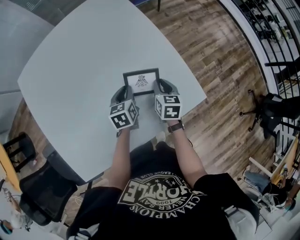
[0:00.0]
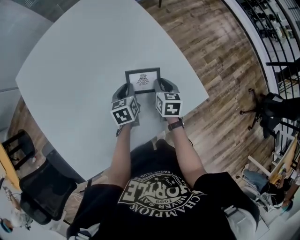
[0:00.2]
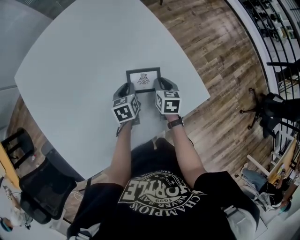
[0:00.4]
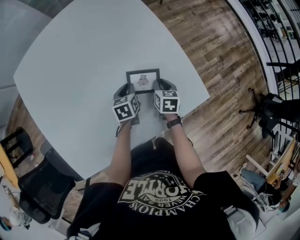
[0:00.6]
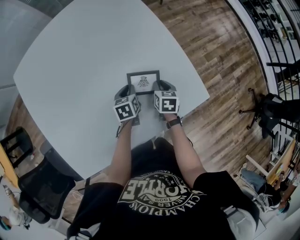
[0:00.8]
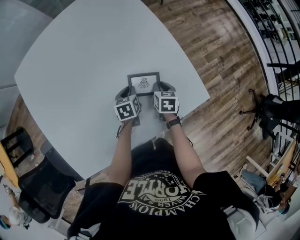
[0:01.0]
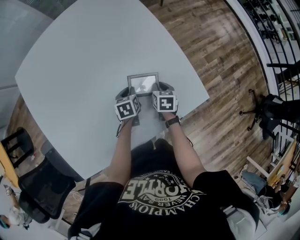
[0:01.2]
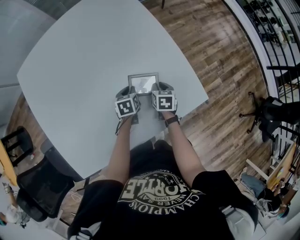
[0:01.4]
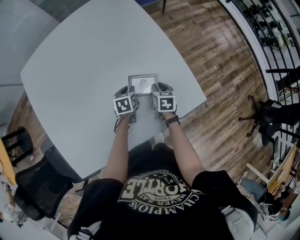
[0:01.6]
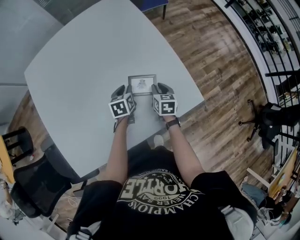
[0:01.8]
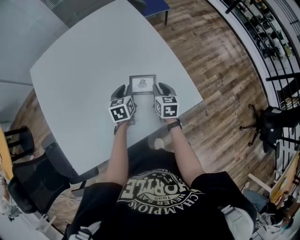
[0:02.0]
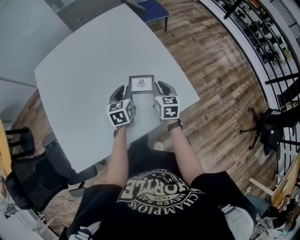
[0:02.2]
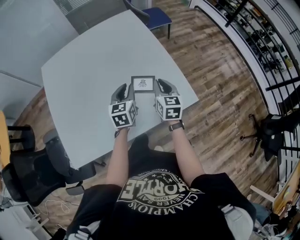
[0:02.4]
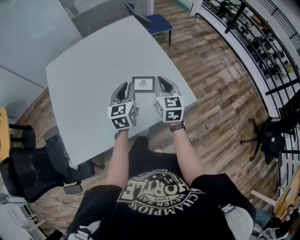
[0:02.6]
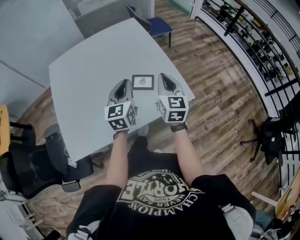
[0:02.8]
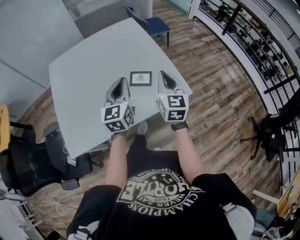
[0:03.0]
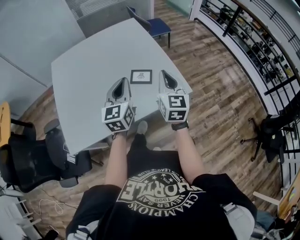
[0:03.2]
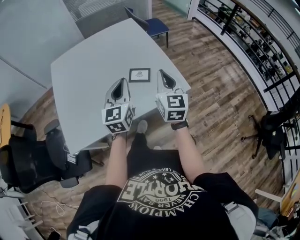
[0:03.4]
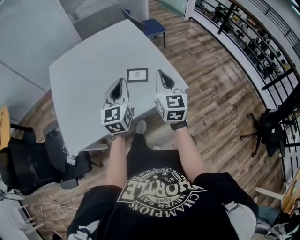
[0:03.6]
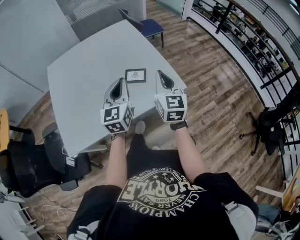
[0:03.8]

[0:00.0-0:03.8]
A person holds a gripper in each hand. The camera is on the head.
0:00.0 to 0:01.2: Both grippers move downward, roughly 10 cm.
0:01.2 to 0:02.6: Both grippers move upward and backward, about 35 cm. The left gripper points its fingers approximately 40 degrees further upward; the right gripper angles its fingers upward, by about 40 degrees.
0:02.6 to 0:03.8: Both grippers travel together backward and upward, roughly 20 cm.

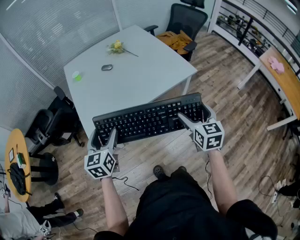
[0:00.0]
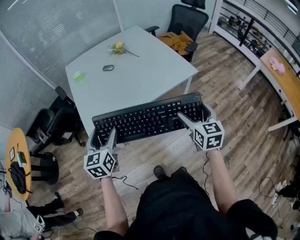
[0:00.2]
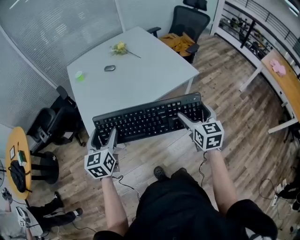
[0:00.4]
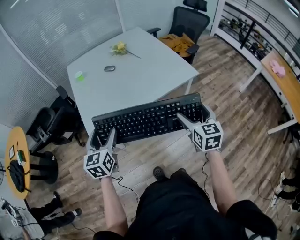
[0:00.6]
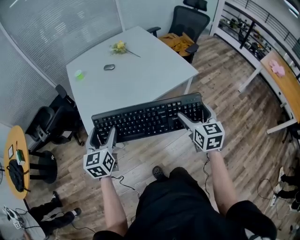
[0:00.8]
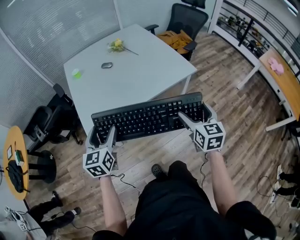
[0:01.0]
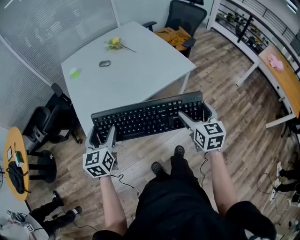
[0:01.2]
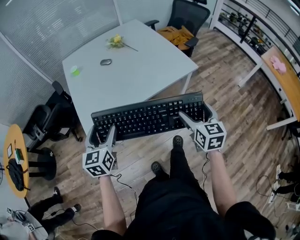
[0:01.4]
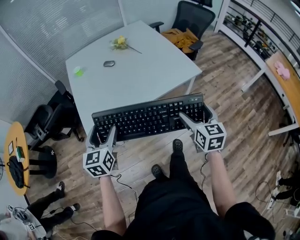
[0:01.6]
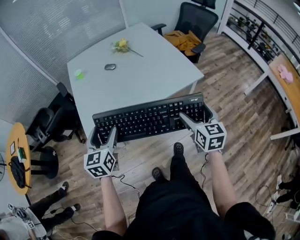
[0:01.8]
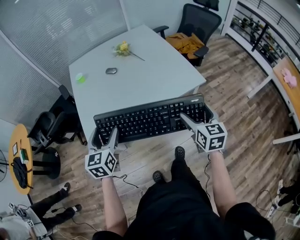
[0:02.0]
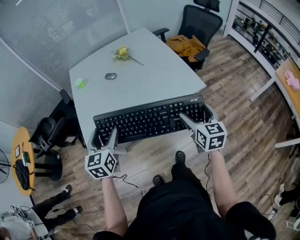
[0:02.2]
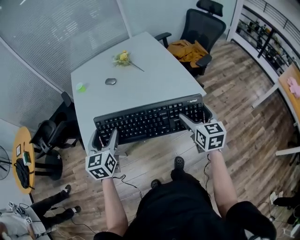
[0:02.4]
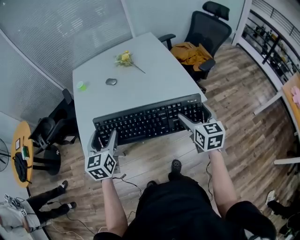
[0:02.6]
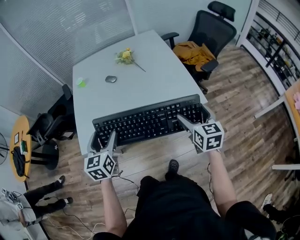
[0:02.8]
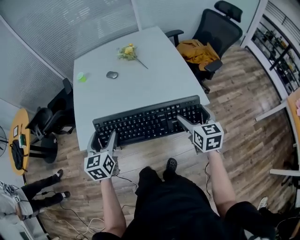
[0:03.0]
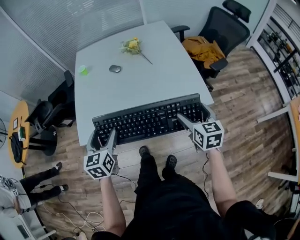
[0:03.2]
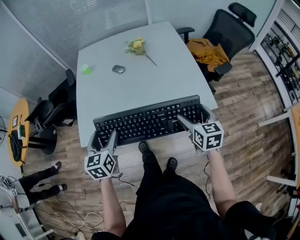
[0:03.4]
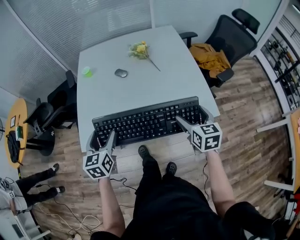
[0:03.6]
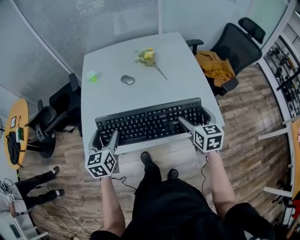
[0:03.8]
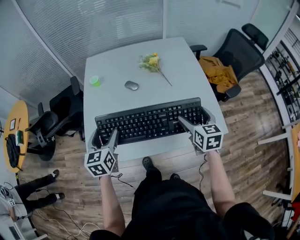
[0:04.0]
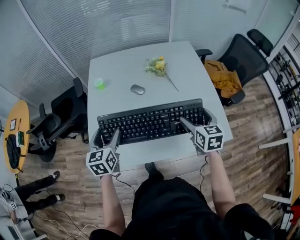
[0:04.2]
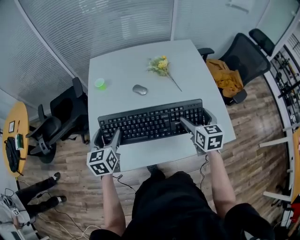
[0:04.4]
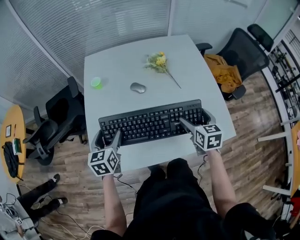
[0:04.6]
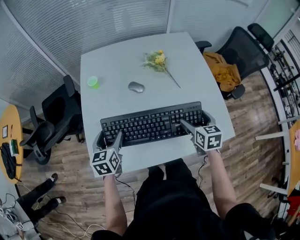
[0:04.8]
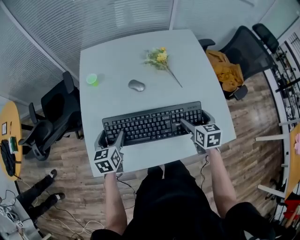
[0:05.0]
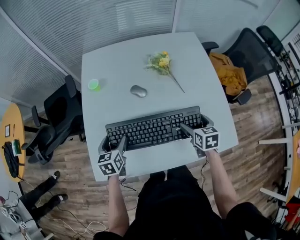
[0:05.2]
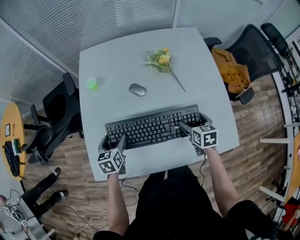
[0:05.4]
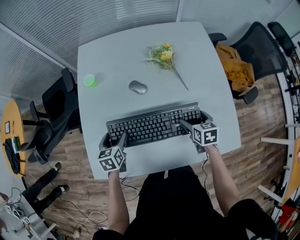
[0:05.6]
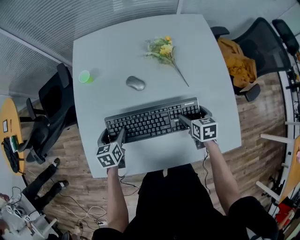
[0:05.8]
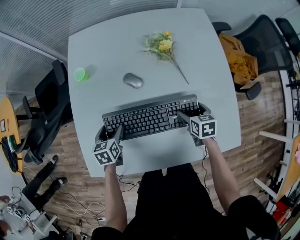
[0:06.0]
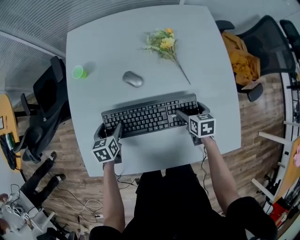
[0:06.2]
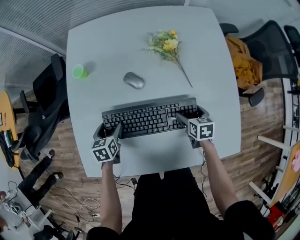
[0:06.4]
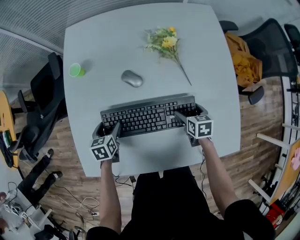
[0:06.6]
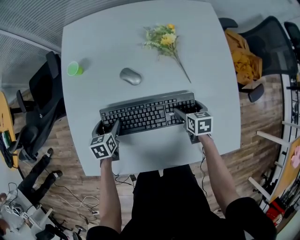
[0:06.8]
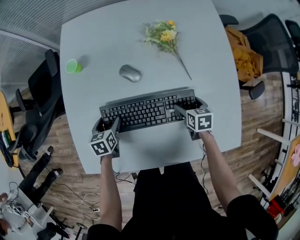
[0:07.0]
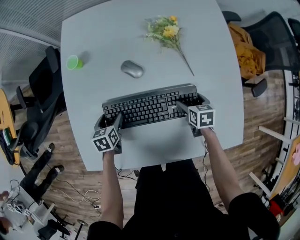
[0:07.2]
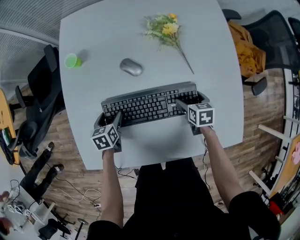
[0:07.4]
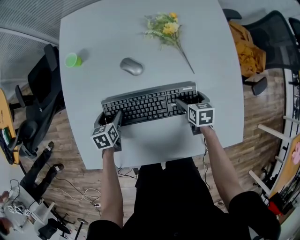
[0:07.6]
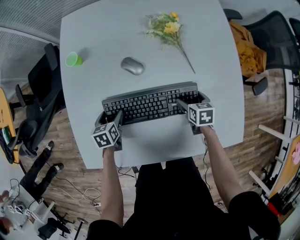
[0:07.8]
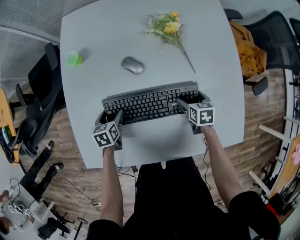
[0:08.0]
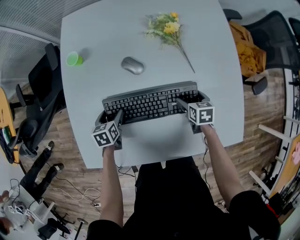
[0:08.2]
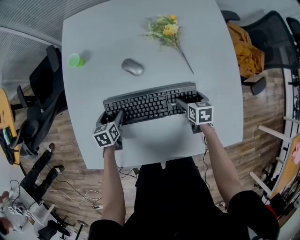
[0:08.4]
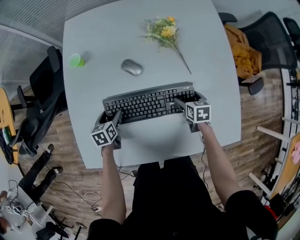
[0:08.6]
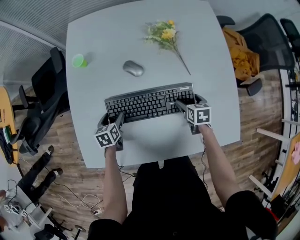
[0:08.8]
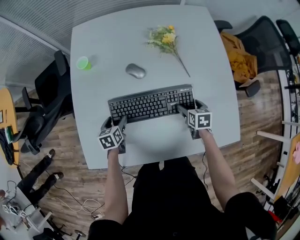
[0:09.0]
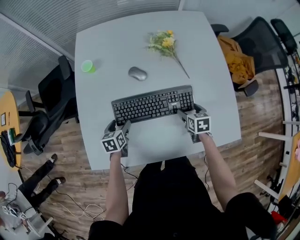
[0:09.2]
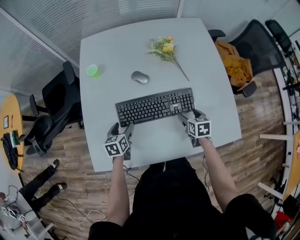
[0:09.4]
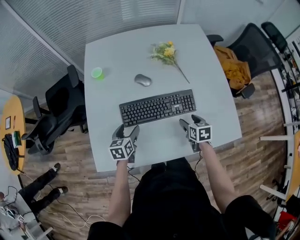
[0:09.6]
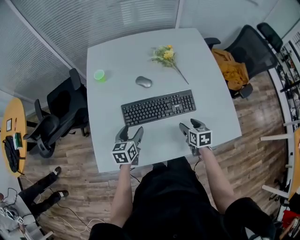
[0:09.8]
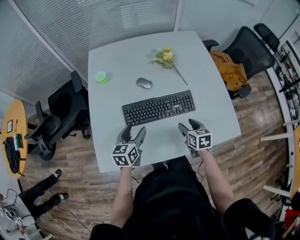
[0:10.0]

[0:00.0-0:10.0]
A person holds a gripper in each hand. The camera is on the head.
0:00.0 to 0:01.4: The grippers move only a little.
0:01.4 to 0:02.8: The two grippers go roughly 20 cm forward and to the right.
0:02.8 to 0:04.2: Both grippers travel together forward and to the left, approximately 25 cm.
0:04.2 to 0:05.8: Both grippers move downward and forward, some 25 cm. The left gripper turns by about 30 degrees; the right gripper rotates roughly 30 degrees.
0:05.8 to 0:07.2: The two grippers go approximately 10 cm downward.
0:07.2 to 0:08.6: The grippers make only small movements.
0:08.6 to 0:10.0: The right gripper shifts some 20 cm backward, upward and to the left, and closes its fingers. Meanwhile the left gripper heads upward and backward, covering some 20 cm, and changes its angle by about 30 degrees.

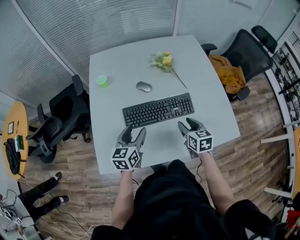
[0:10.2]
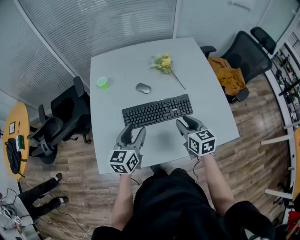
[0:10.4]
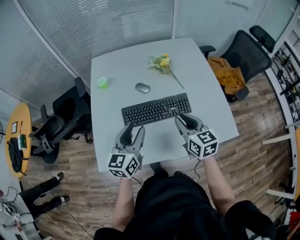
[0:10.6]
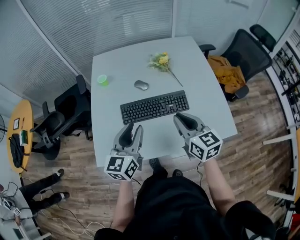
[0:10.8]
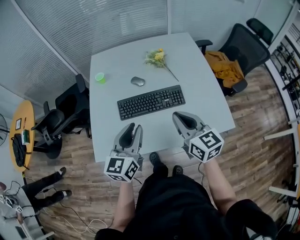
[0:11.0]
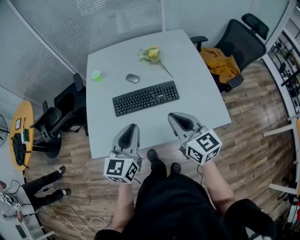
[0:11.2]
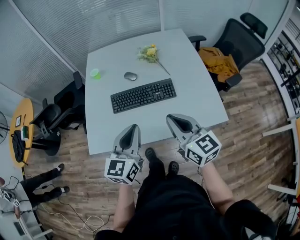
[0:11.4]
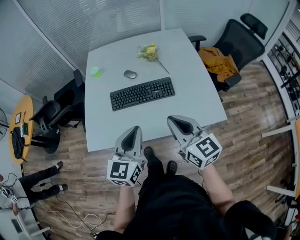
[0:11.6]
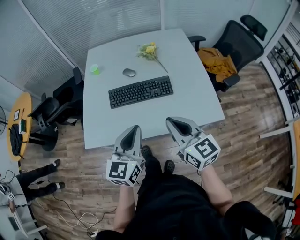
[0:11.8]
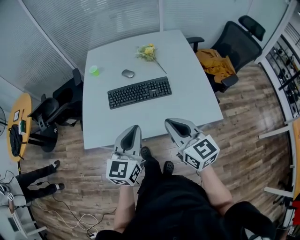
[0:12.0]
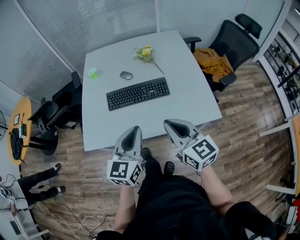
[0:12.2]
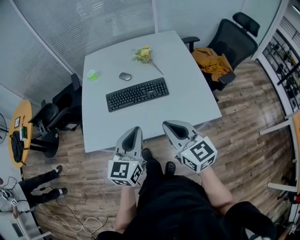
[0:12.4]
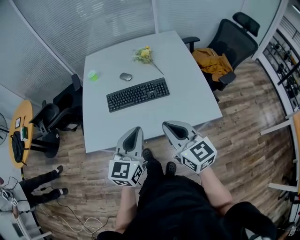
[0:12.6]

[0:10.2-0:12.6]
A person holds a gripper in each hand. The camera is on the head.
0:10.2 to 0:11.4: The right gripper is displaced upward and backward by about 25 cm, turns by approximately 30 degrees, and closes. The left gripper travels backward, upward and to the right by some 25 cm, and closes its fingers.
0:11.4 to 0:12.6: The grippers both shift backward by roughly 5 cm.

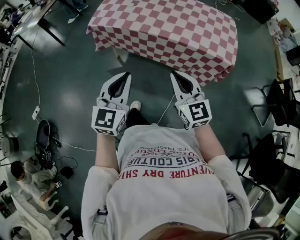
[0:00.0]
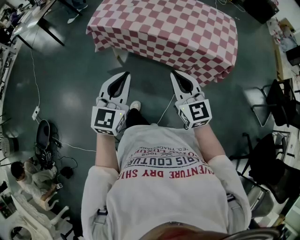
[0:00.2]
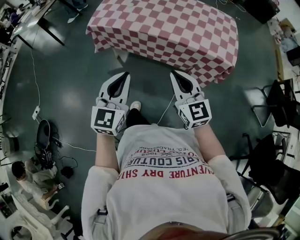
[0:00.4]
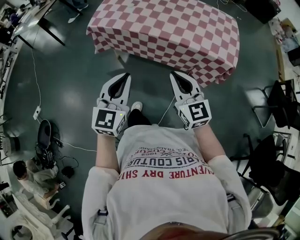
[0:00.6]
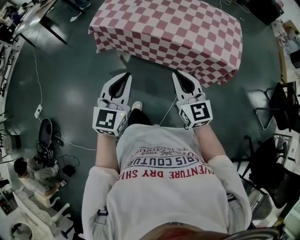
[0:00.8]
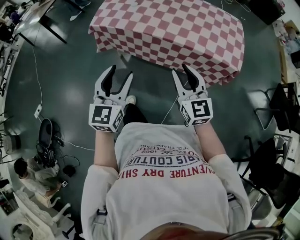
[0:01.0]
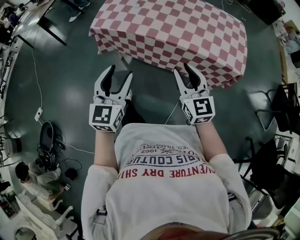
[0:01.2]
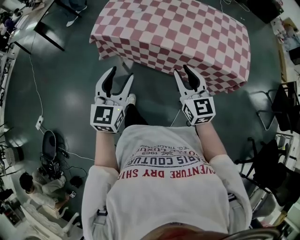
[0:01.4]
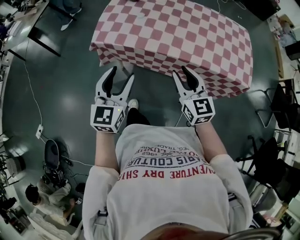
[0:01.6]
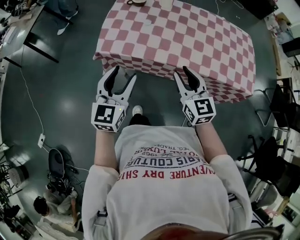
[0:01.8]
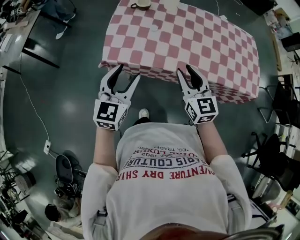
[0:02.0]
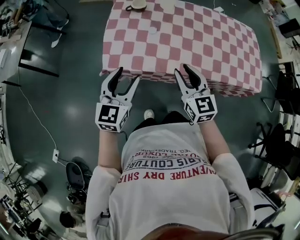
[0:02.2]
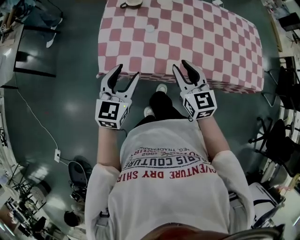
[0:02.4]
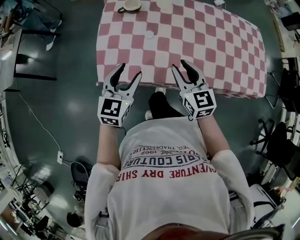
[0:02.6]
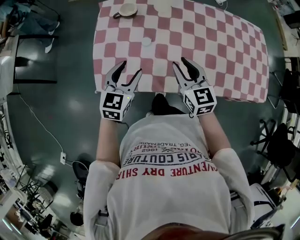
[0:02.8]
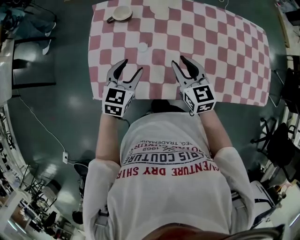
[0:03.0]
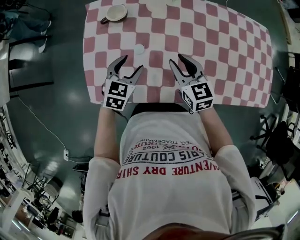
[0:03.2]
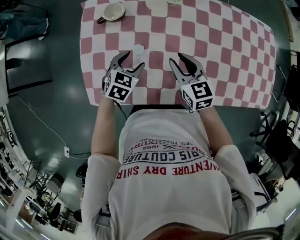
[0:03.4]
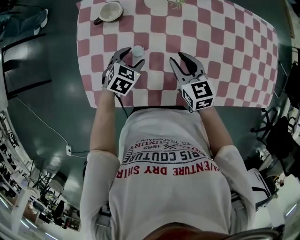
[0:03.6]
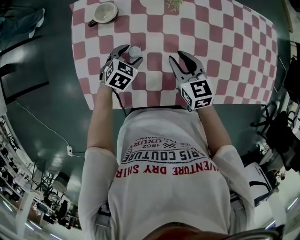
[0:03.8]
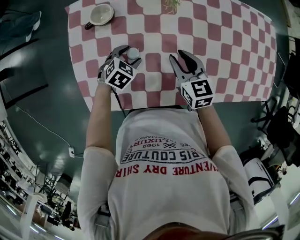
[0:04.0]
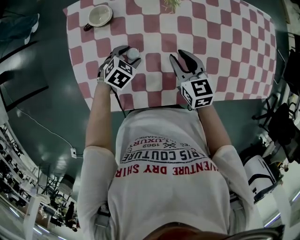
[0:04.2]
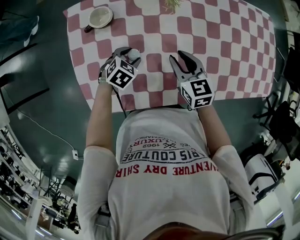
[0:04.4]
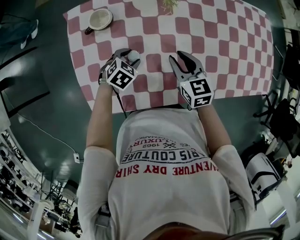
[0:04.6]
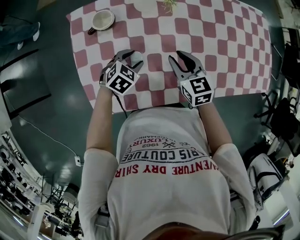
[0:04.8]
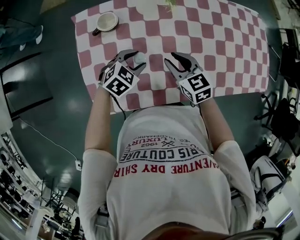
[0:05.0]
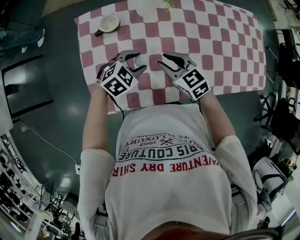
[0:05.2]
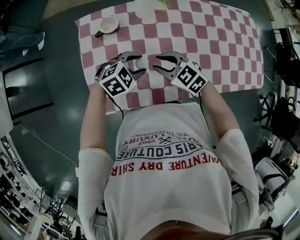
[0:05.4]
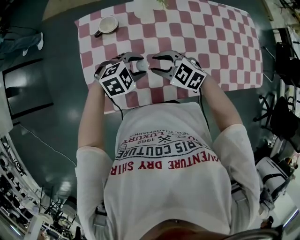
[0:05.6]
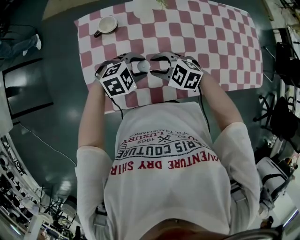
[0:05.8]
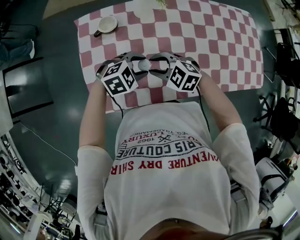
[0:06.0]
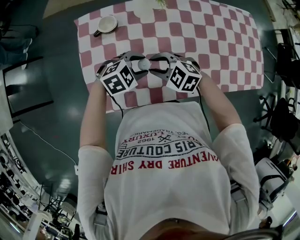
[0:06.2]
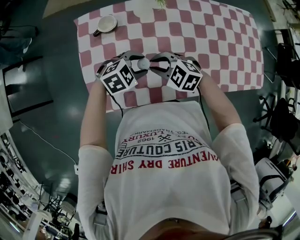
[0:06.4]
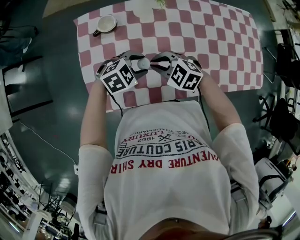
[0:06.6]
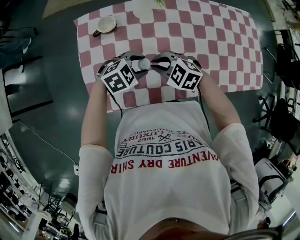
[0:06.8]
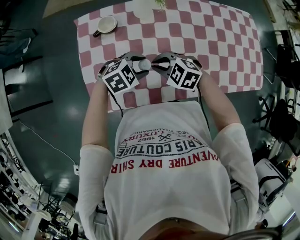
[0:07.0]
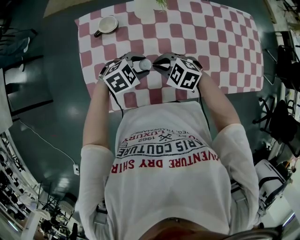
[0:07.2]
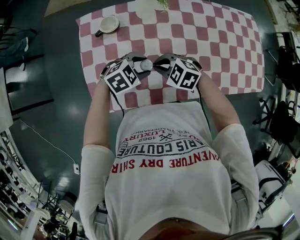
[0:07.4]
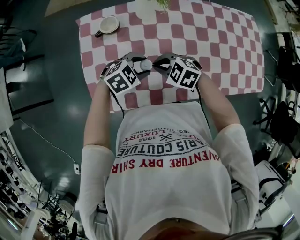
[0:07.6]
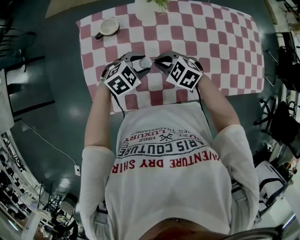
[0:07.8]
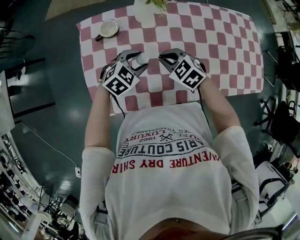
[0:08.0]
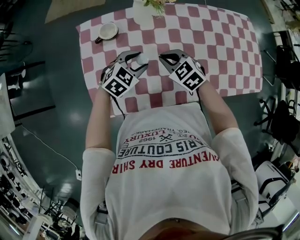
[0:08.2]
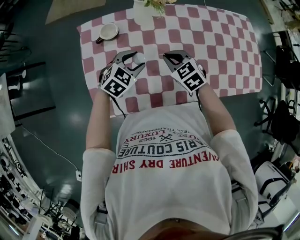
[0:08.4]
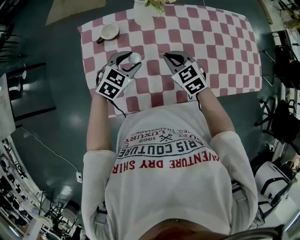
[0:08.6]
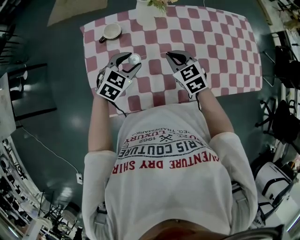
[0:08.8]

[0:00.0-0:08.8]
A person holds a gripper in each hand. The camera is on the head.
0:00.0 to 0:01.4: The left gripper shifts approximately 25 cm forward and to the left, and opens. The right gripper heads forward, covering roughly 20 cm, and opens its fingers.
0:01.4 to 0:03.0: The two grippers go roughly 35 cm forward. The left gripper turns by some 30 degrees.
0:03.0 to 0:04.4: The left gripper shifts about 20 cm downward and forward, and points its fingers some 30 degrees further downward, while the right gripper goes some 10 cm downward and forward.
0:04.4 to 0:05.8: The right gripper changes place by approximately 15 cm, and changes its angle by roughly 60 degrees. The left gripper travels upward by approximately 15 cm, and turns by roughly 40 degrees.
0:05.8 to 0:07.4: The right gripper closes.
0:07.4 to 0:08.8: The left gripper shifts by some 10 cm, and changes its angle by roughly 30 degrees, while the right gripper shifts by roughly 10 cm, and swivels about 40 degrees.
